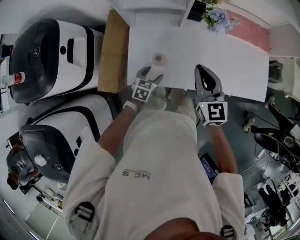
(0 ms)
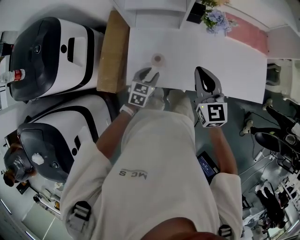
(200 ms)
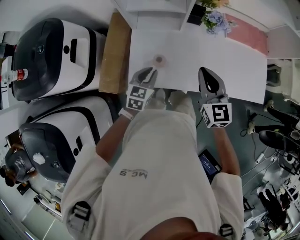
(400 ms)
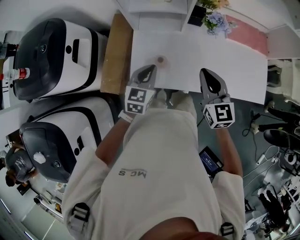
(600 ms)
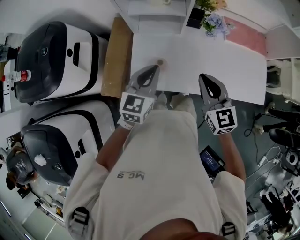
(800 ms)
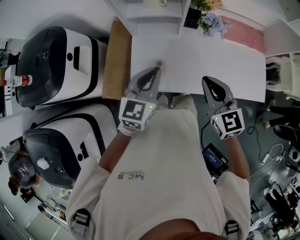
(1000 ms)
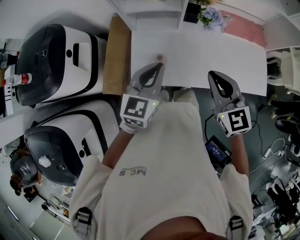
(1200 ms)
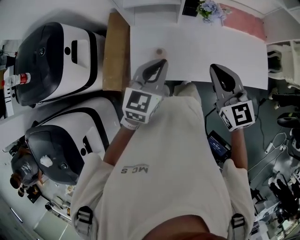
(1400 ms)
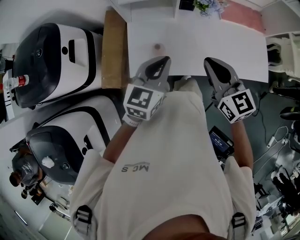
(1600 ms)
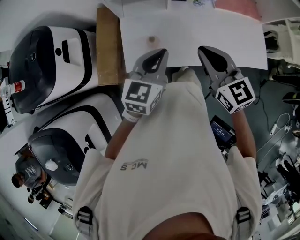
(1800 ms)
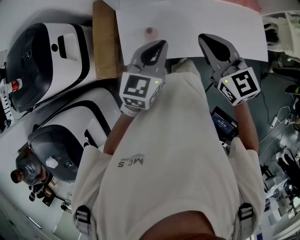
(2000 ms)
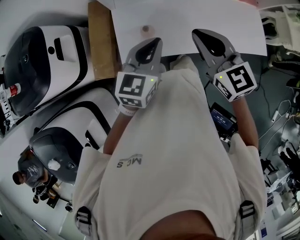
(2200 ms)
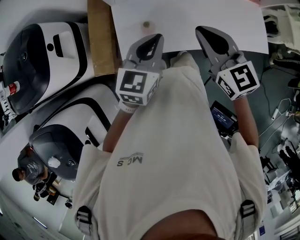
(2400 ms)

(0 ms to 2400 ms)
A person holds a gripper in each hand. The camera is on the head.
0 ms - 1200 ms: The left gripper is displaced upward by approximately 30 cm, swivels roughly 30 degrees, and closes up, while the right gripper shifts roughly 10 cm upward and backward.
1200 ms - 2400 ms: The left gripper ends up roughly 5 cm from where it was.

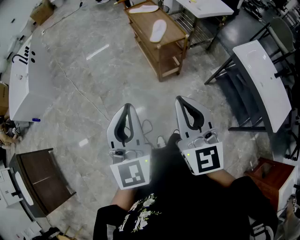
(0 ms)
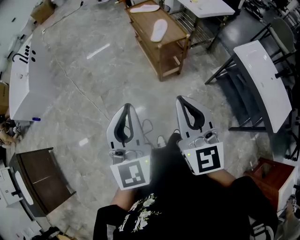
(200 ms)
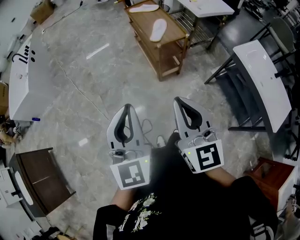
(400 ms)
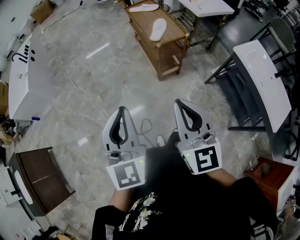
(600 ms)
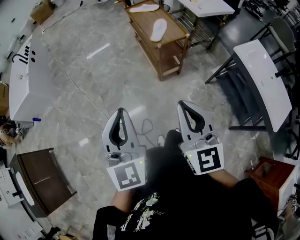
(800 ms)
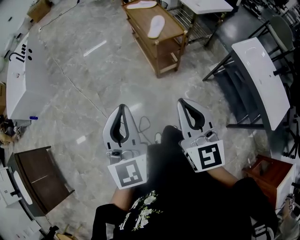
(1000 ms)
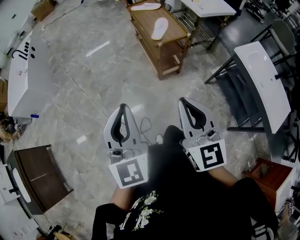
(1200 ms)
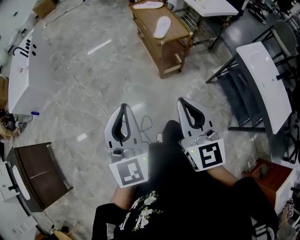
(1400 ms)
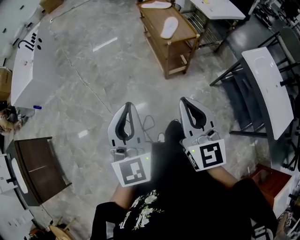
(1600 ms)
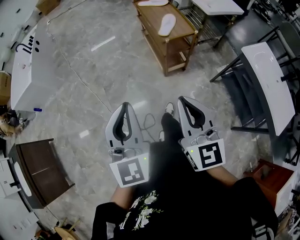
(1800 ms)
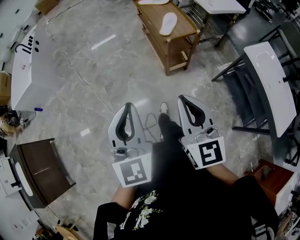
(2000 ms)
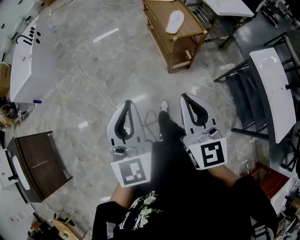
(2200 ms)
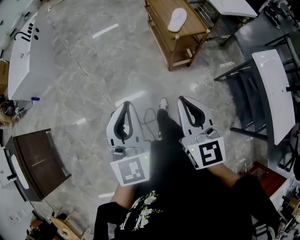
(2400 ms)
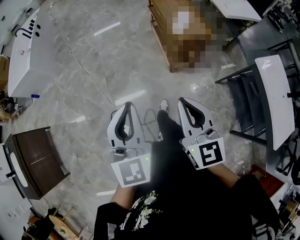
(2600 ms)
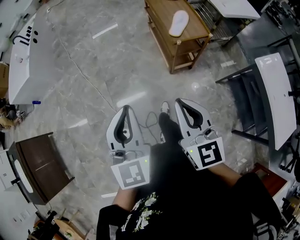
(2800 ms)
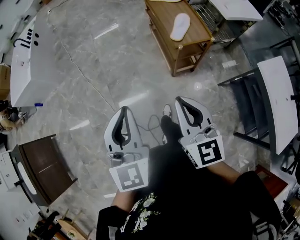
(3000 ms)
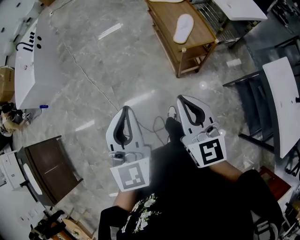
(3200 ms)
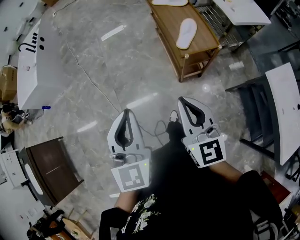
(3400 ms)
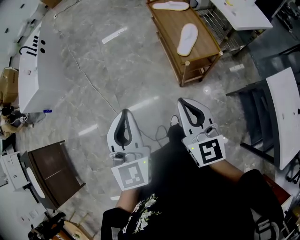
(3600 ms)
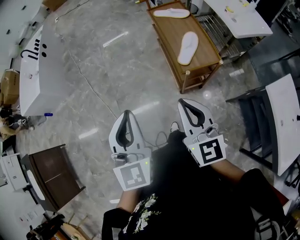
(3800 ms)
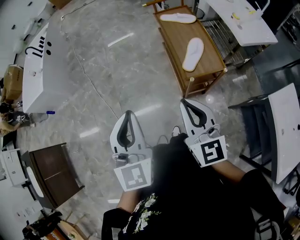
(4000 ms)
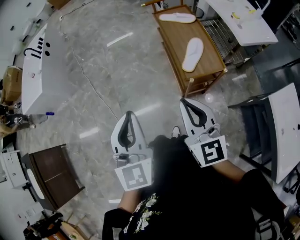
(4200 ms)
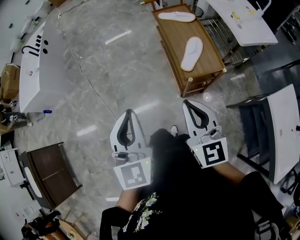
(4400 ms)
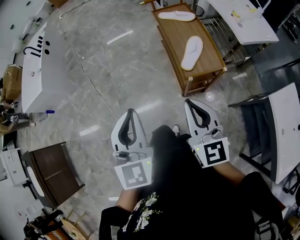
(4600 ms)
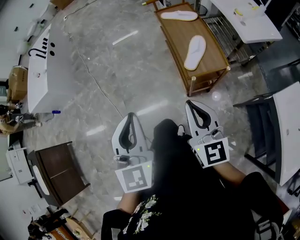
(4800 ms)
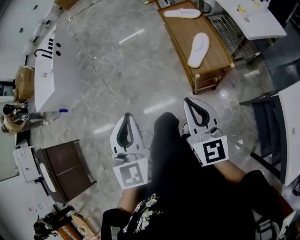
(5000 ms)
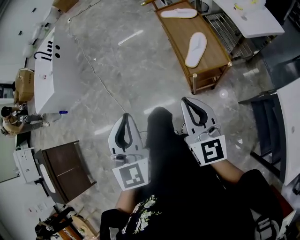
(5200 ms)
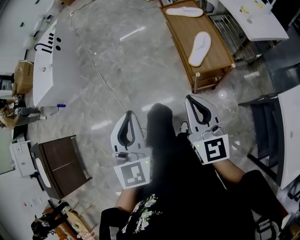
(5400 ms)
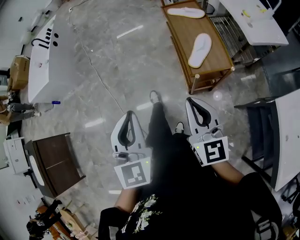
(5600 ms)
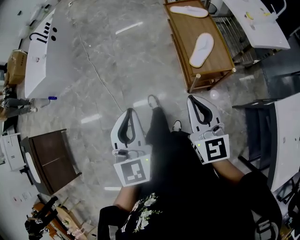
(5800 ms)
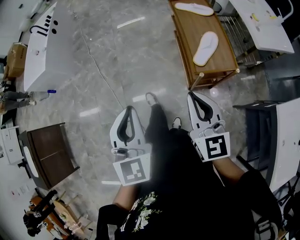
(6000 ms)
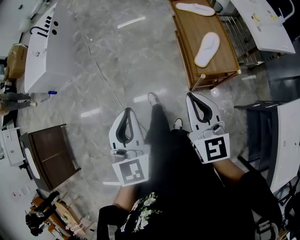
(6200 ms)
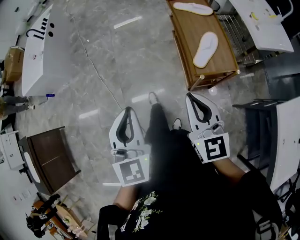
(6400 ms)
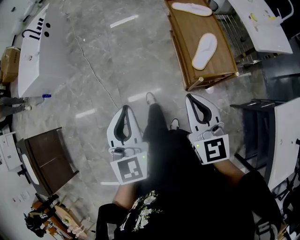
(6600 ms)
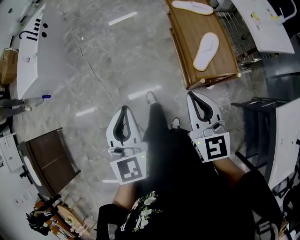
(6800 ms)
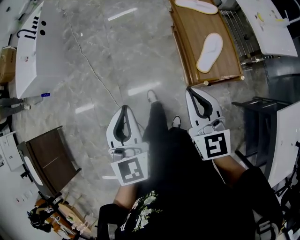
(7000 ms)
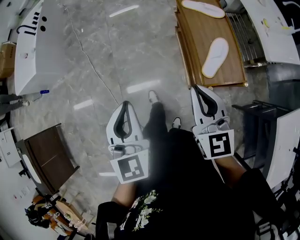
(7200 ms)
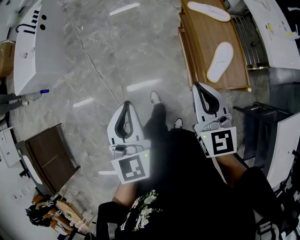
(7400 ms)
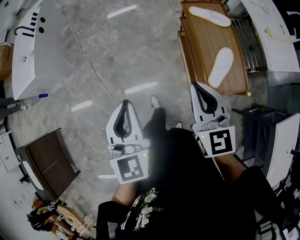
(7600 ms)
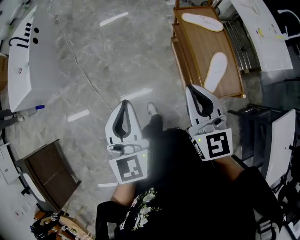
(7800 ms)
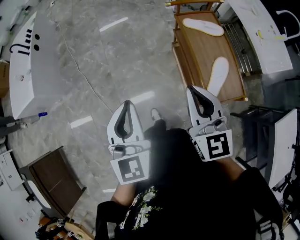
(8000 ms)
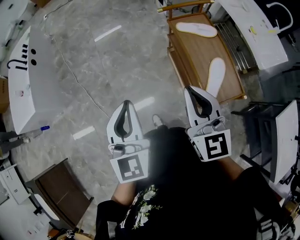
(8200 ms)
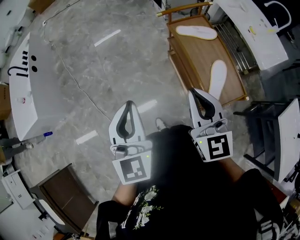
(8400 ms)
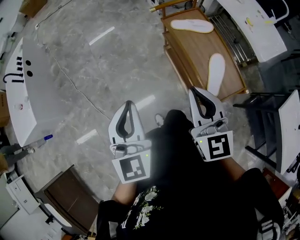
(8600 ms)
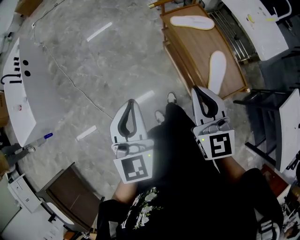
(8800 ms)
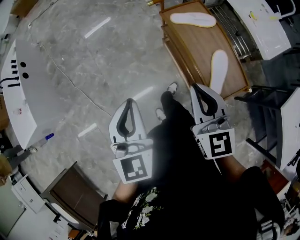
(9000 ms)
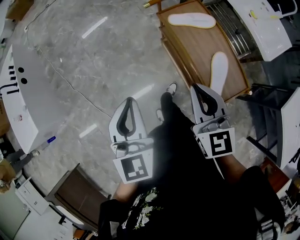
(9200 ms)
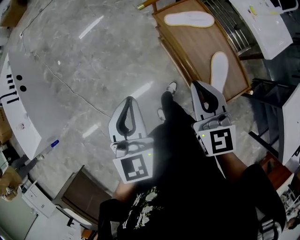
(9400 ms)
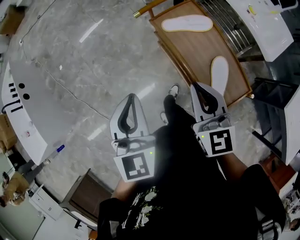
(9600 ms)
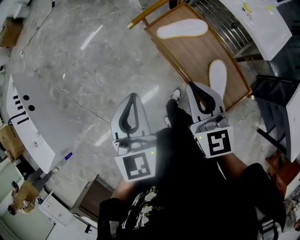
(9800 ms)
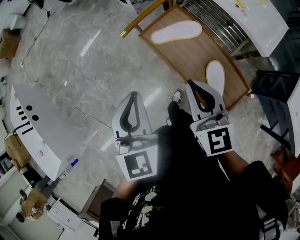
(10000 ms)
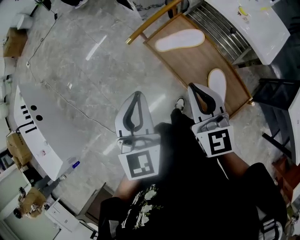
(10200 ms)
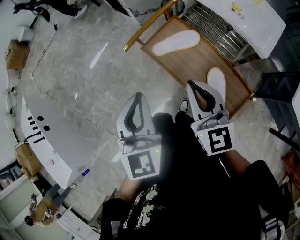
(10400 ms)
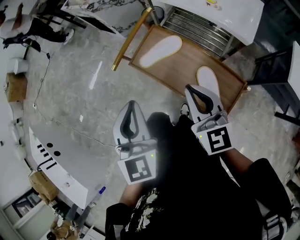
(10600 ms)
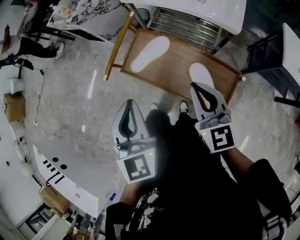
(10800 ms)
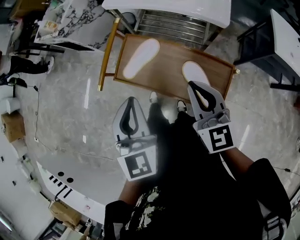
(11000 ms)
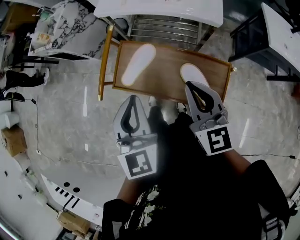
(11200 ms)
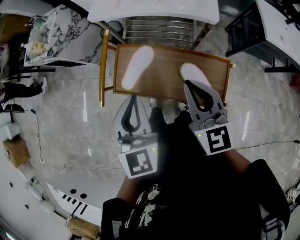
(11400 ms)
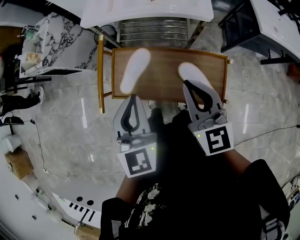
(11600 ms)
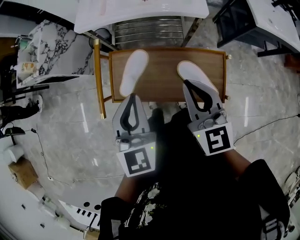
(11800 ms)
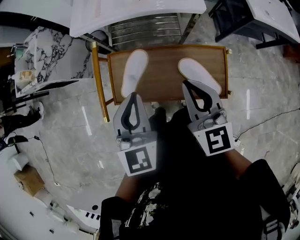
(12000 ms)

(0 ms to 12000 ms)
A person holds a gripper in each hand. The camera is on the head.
0 ms - 1600 ms: The grippers move only a little.
1600 ms - 3000 ms: The grippers both shift forward by approximately 15 cm.
3000 ms - 4400 ms: The right gripper shifts approximately 15 cm forward and to the right, while the left gripper heads forward, covering approximately 15 cm.
4400 ms - 6000 ms: There are only small adjustments of the grippers.
6000 ms - 7600 ms: Both grippers move forward, approximately 20 cm.
7600 ms - 9000 ms: The left gripper travels forward by about 15 cm, while the right gripper heads forward, covering roughly 10 cm.
9000 ms - 10400 ms: Both grippers travel together forward and to the right, roughly 20 cm. The left gripper swivels some 20 degrees.
10400 ms - 12000 ms: The left gripper ends up approximately 20 cm from where it was, and swivels some 50 degrees. Meanwhile the right gripper moves about 10 cm, and turns by some 50 degrees.

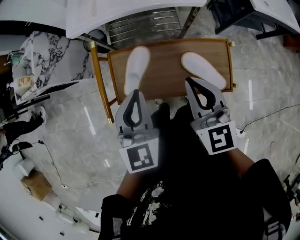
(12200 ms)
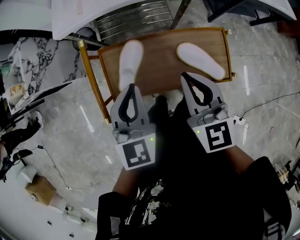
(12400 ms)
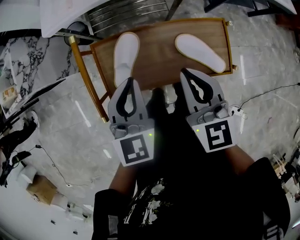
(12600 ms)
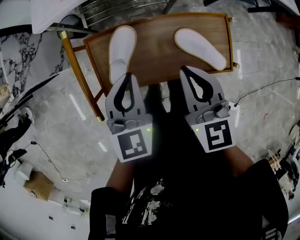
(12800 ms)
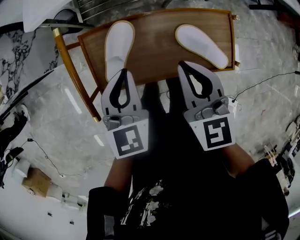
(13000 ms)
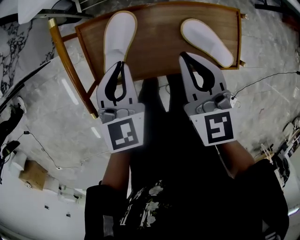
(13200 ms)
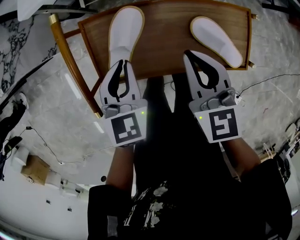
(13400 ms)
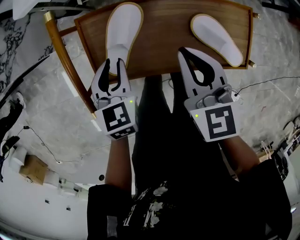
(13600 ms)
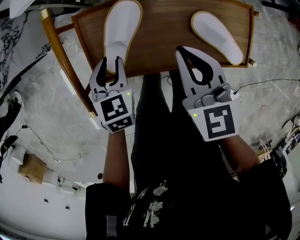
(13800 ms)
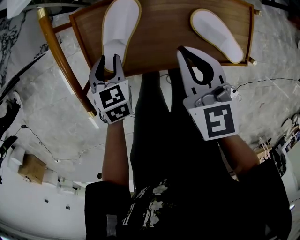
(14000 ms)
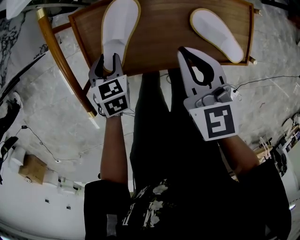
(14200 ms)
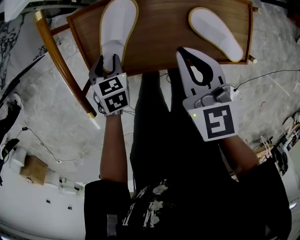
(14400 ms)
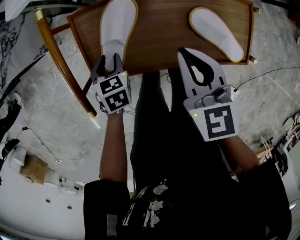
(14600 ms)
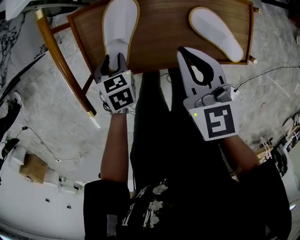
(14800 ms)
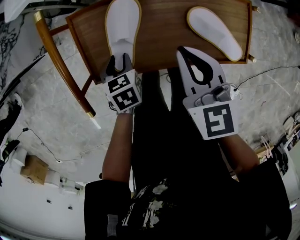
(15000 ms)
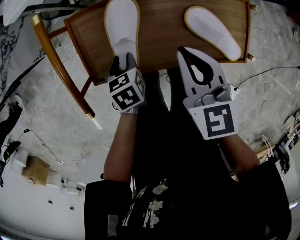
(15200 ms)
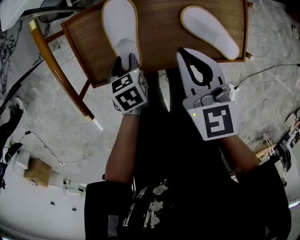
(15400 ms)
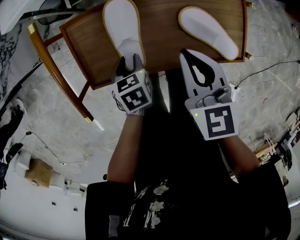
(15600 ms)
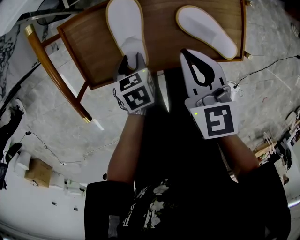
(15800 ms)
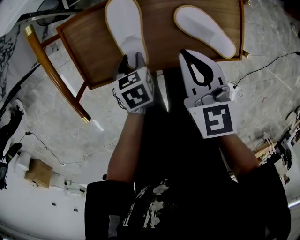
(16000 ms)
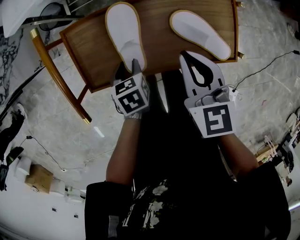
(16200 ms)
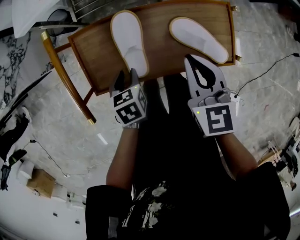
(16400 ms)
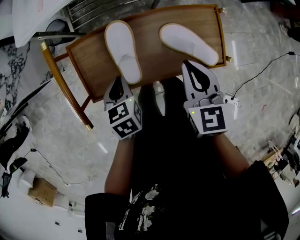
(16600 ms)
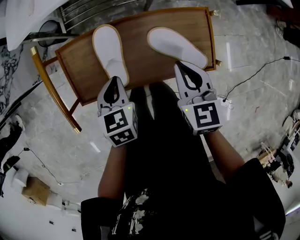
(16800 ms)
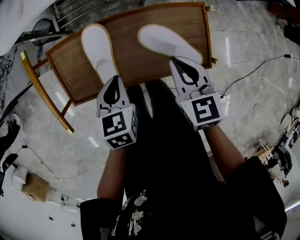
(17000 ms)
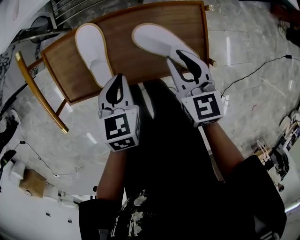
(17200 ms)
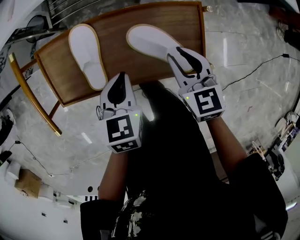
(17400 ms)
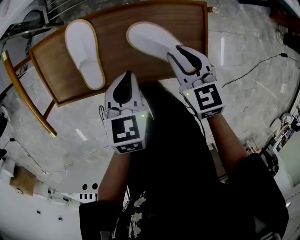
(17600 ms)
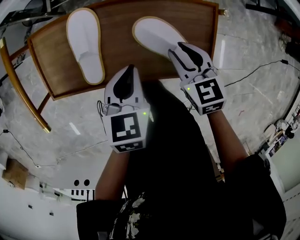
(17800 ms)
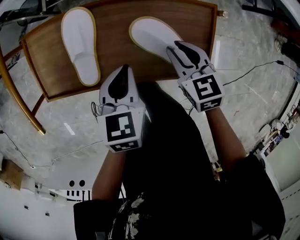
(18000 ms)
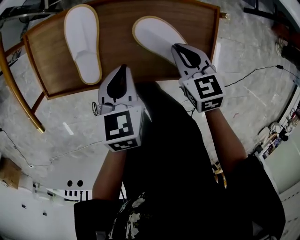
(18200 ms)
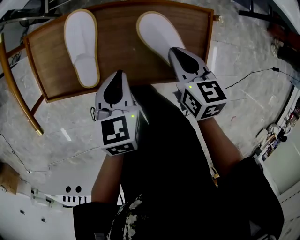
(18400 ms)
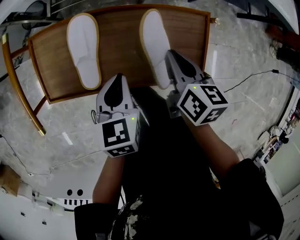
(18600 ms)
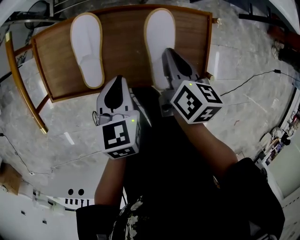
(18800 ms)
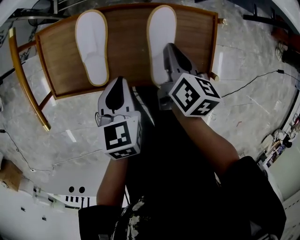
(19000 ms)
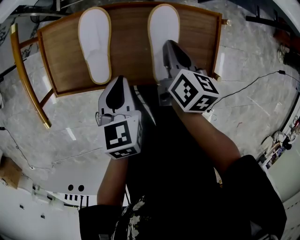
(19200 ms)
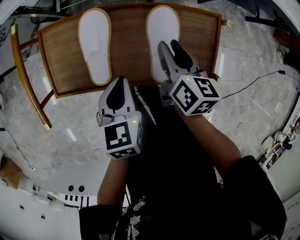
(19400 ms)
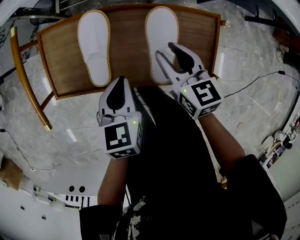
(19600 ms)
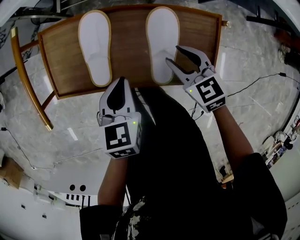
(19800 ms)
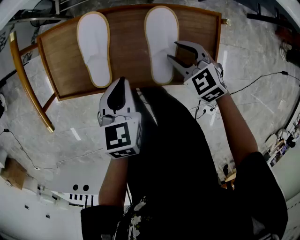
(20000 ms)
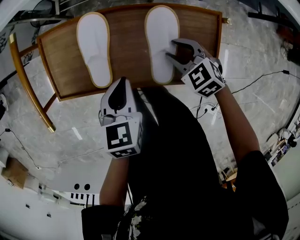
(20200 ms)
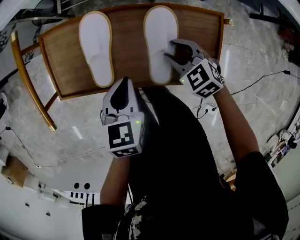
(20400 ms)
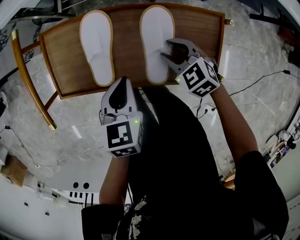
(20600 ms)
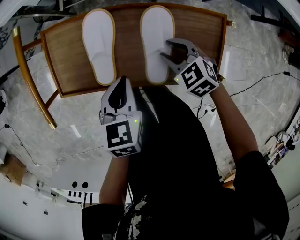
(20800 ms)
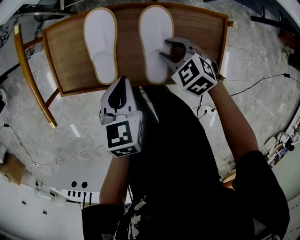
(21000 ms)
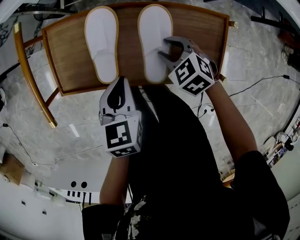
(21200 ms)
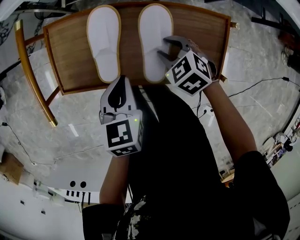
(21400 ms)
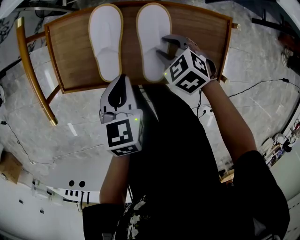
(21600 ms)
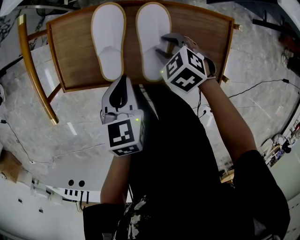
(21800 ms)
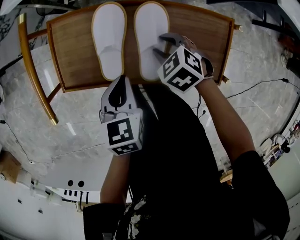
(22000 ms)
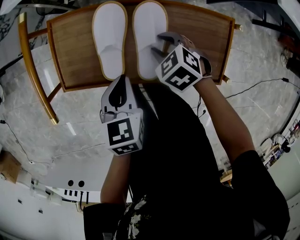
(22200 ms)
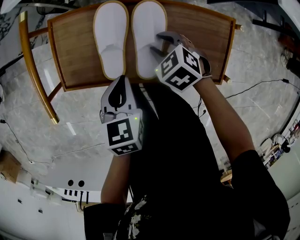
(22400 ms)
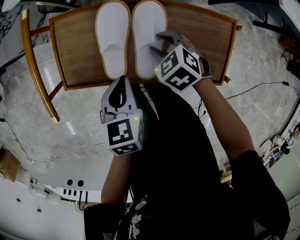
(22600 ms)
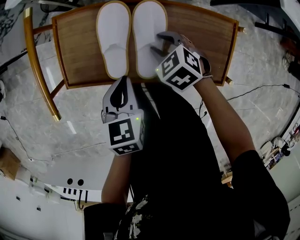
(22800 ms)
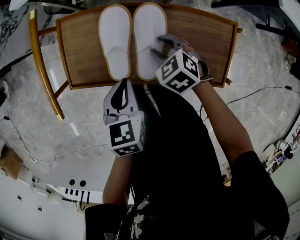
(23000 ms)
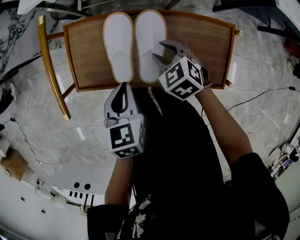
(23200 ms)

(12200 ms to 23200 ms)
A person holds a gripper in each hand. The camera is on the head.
12200 ms - 13800 ms: The left gripper is displaced downward by about 25 cm, rotates about 30 degrees, and opens up, while the right gripper travels downward by some 15 cm.
13800 ms - 15400 ms: The left gripper shifts some 10 cm downward, and rotates approximately 20 degrees.
15400 ms - 17000 ms: The right gripper shifts some 10 cm to the right. Meanwhile the left gripper moves upward and to the right, some 15 cm, and closes its fingers.
17000 ms - 18400 ms: The right gripper is displaced downward by some 10 cm, and opens, then closes once more. Meanwhile the left gripper is displaced to the right by roughly 5 cm.
18400 ms - 20000 ms: The right gripper shifts about 5 cm downward, twists about 40 degrees counterclockwise, seen from behind, and opens.
20000 ms - 21600 ms: The right gripper moves to the left, roughly 5 cm.
21600 ms - 23200 ms: The right gripper shifts by approximately 5 cm.
